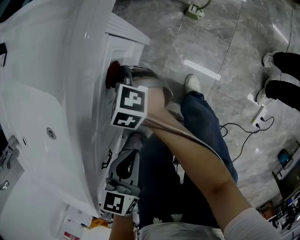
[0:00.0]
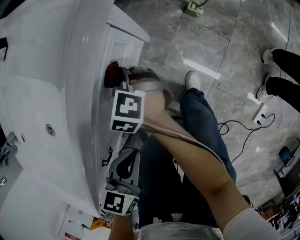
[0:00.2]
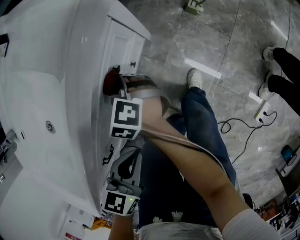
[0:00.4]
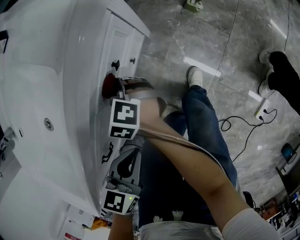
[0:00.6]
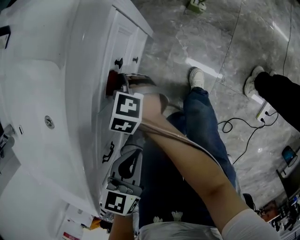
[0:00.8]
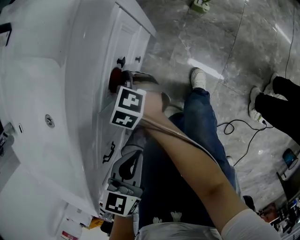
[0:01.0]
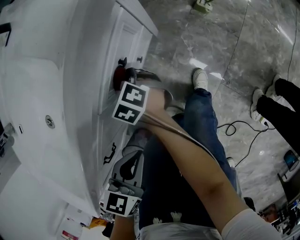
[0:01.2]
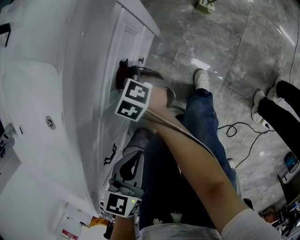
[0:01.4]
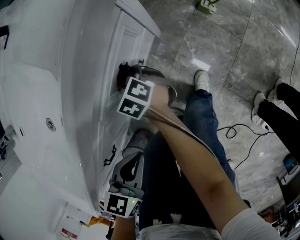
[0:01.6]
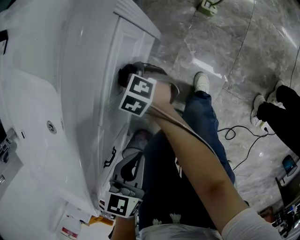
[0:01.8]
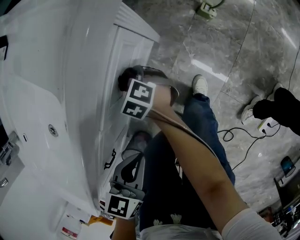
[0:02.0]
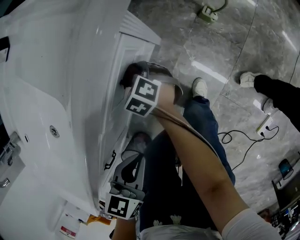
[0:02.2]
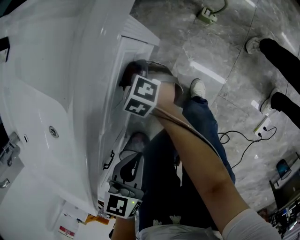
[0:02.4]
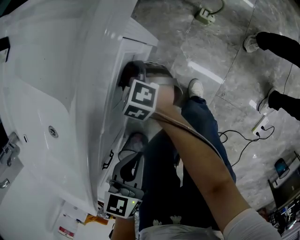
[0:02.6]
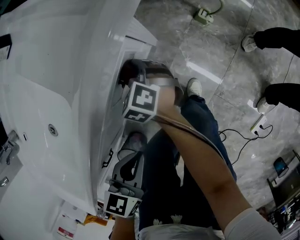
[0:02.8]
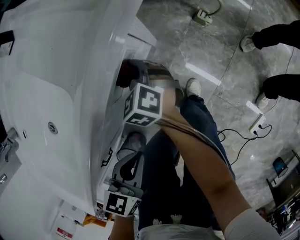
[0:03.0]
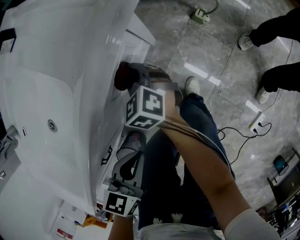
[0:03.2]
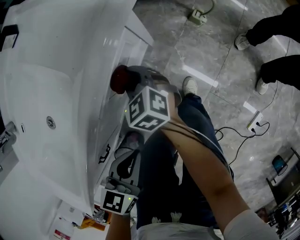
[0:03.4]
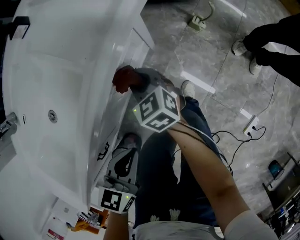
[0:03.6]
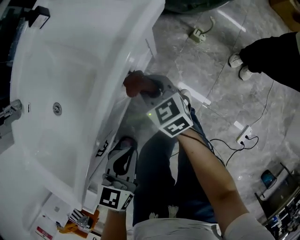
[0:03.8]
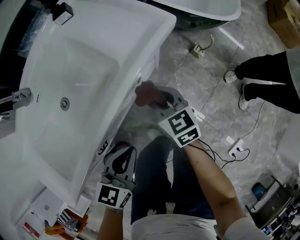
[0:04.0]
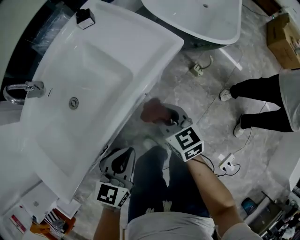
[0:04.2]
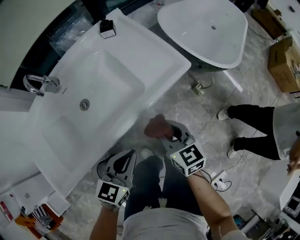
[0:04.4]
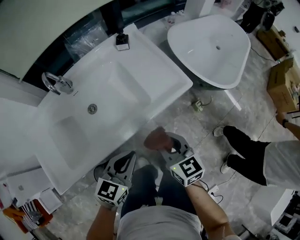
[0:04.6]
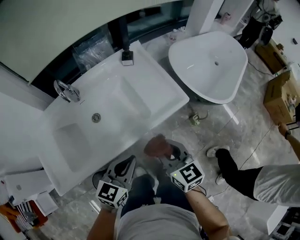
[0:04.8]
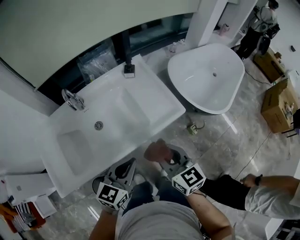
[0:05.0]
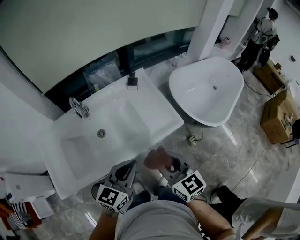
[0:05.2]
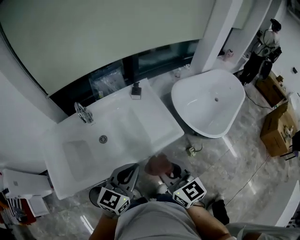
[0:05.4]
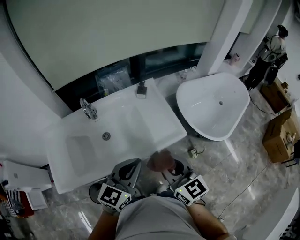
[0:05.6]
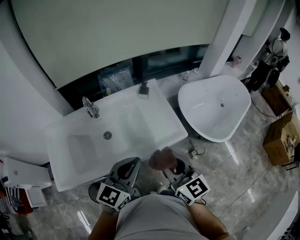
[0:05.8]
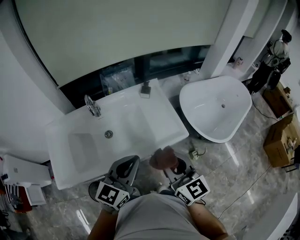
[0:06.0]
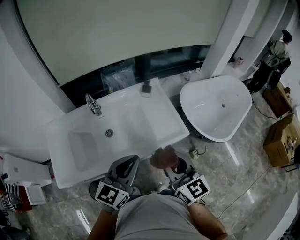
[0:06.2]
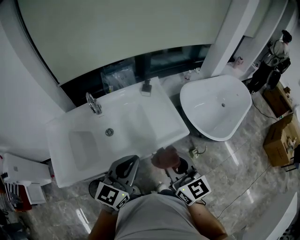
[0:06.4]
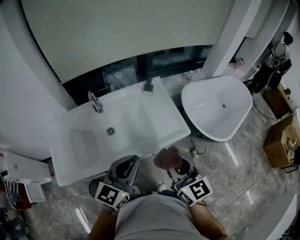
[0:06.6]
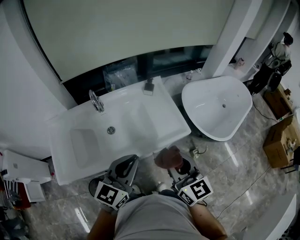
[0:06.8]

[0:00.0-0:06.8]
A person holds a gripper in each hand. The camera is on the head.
0:00.0 to 0:01.4: The left gripper shifts by some 5 cm, while the right gripper heads downward and backward, covering some 10 cm.
0:01.4 to 0:02.8: The left gripper travels forward by some 5 cm, while the right gripper is displaced forward and to the right by approximately 10 cm.
0:02.8 to 0:04.0: The right gripper shifts approximately 25 cm upward and backward, and changes its angle by roughly 30 degrees. The left gripper goes some 10 cm upward.
0:04.0 to 0:05.4: Both grippers move upward, about 35 cm. The left gripper changes its angle by roughly 30 degrees. Meanwhile the right gripper changes its angle by about 30 degrees.
0:05.4 to 0:06.8: The left gripper moves approximately 5 cm.

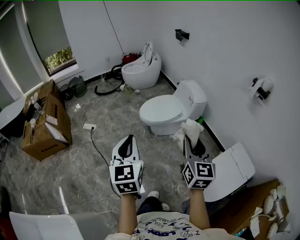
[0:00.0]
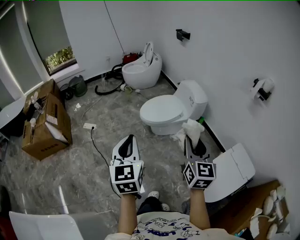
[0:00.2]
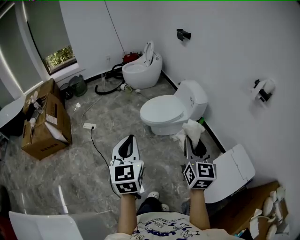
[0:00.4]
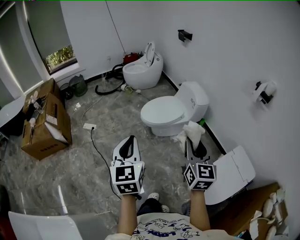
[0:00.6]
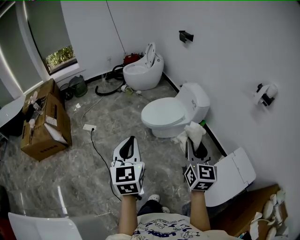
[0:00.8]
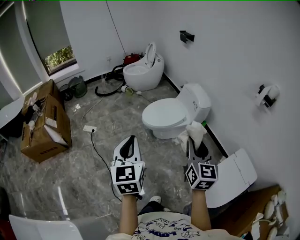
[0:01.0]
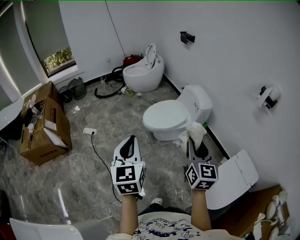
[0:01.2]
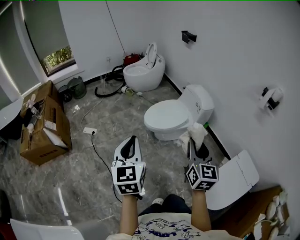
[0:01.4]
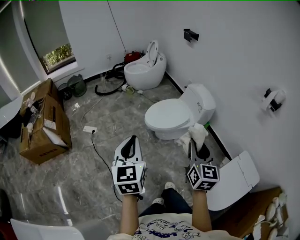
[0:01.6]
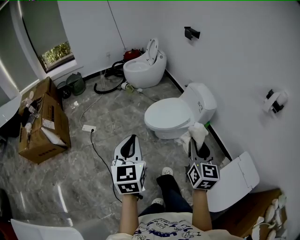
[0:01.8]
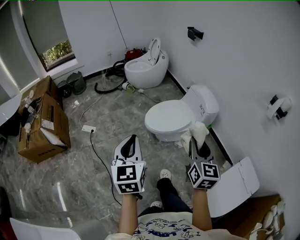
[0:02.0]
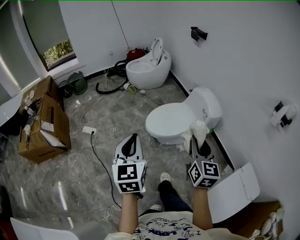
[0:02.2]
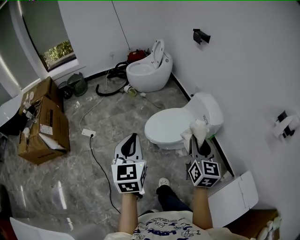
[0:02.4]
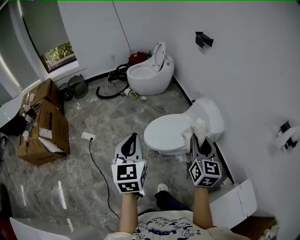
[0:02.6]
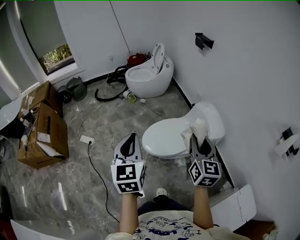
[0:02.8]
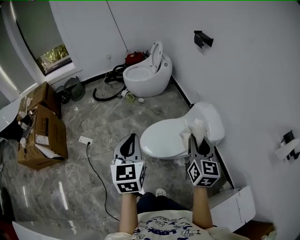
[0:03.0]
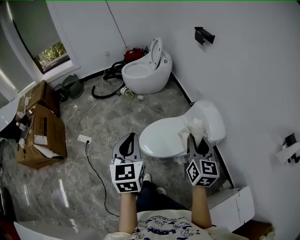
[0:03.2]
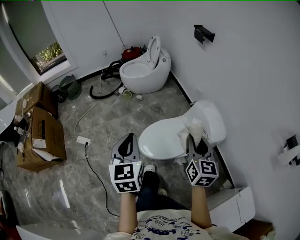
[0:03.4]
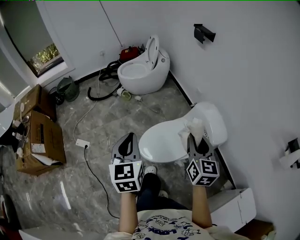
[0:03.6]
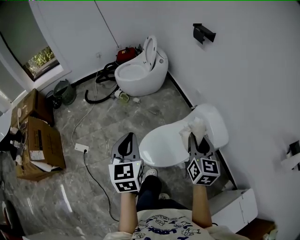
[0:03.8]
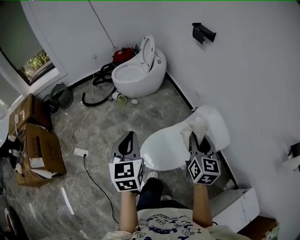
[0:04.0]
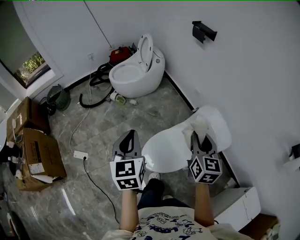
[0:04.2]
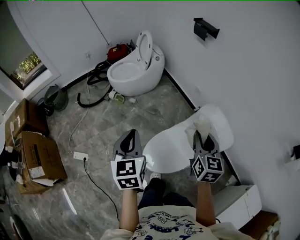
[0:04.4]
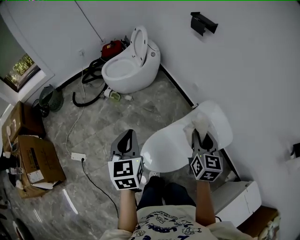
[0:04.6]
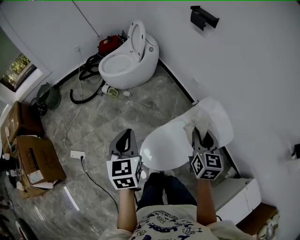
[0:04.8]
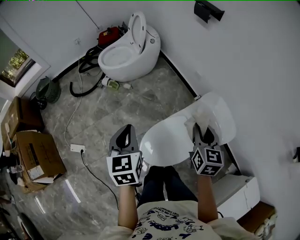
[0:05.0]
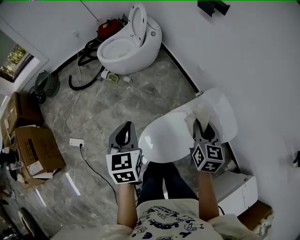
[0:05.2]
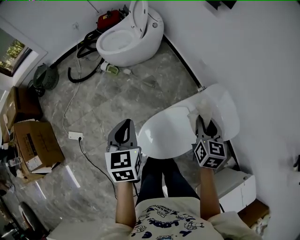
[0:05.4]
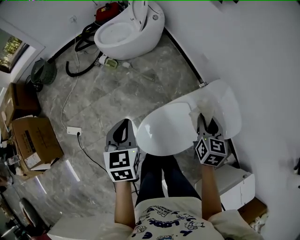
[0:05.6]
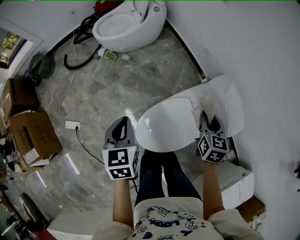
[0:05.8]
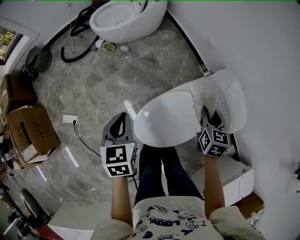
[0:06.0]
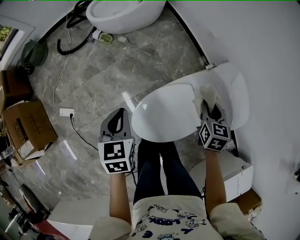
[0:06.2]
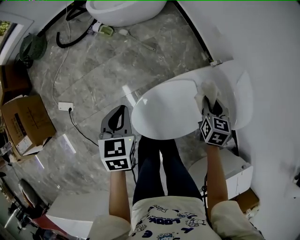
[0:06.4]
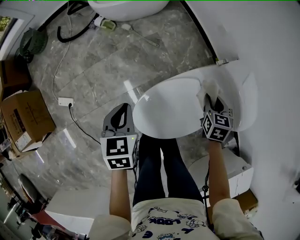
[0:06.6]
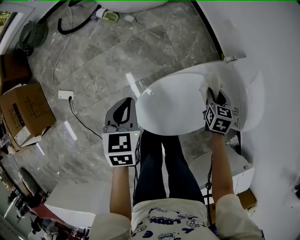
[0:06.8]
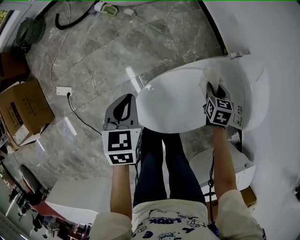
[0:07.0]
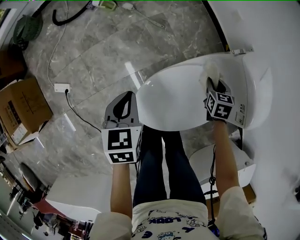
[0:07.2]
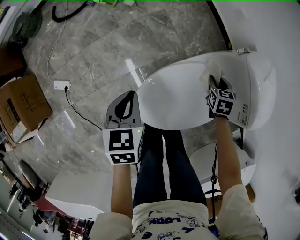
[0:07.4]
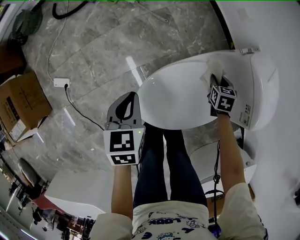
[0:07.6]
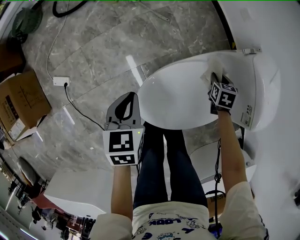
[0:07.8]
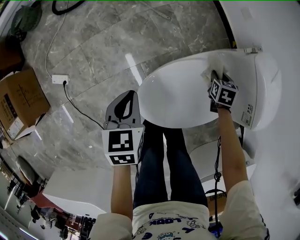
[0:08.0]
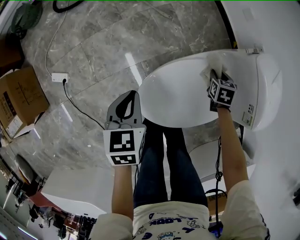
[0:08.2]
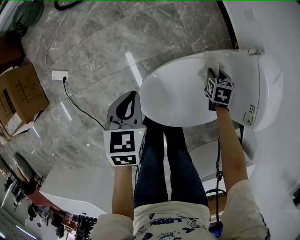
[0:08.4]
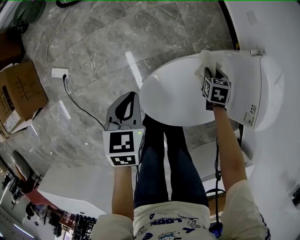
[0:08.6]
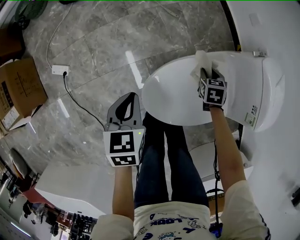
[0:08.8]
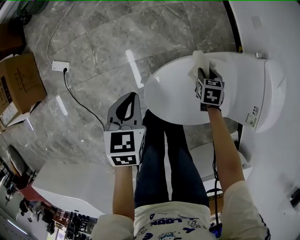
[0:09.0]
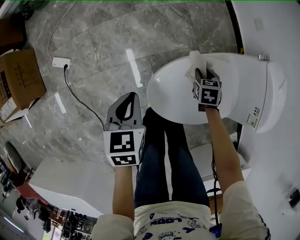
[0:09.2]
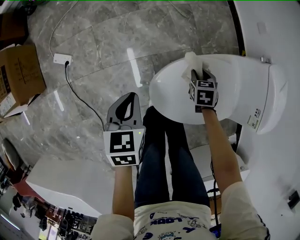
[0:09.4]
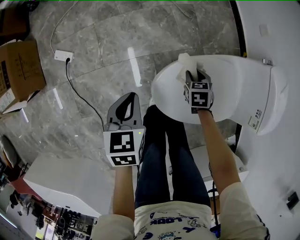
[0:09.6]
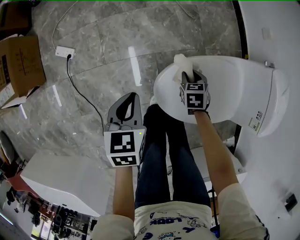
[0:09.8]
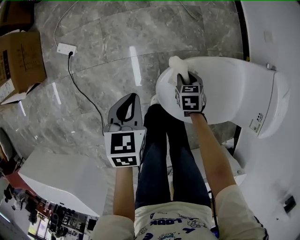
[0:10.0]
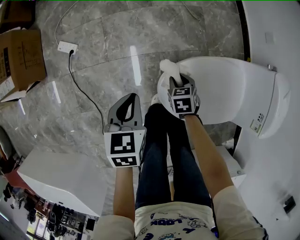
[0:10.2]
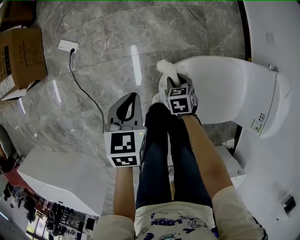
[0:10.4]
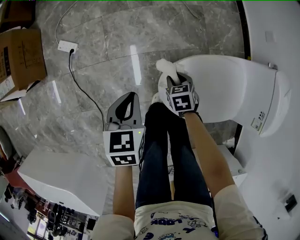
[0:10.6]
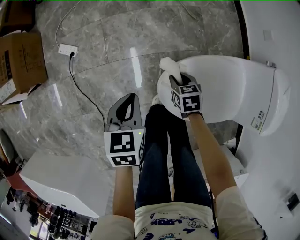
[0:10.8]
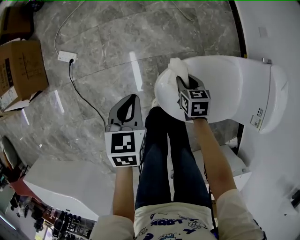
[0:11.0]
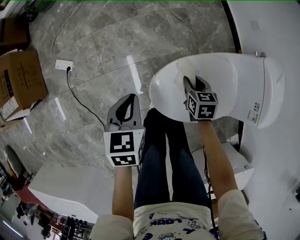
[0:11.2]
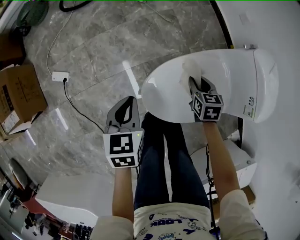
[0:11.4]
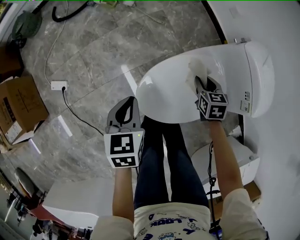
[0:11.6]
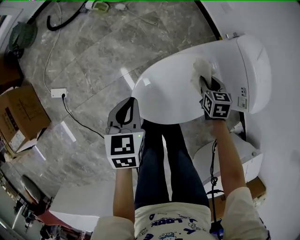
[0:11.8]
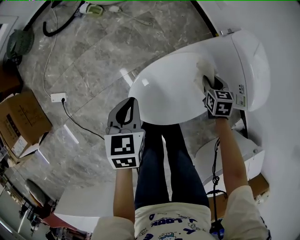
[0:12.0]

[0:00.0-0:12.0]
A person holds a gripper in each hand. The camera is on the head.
0:00.0 to 0:01.6: The two grippers go approximately 15 cm forward and to the left.
0:01.6 to 0:03.0: Both grippers move forward, approximately 40 cm.
0:03.0 to 0:04.4: Both grippers move forward, roughly 30 cm.
0:04.4 to 0:06.0: Both grippers travel together downward and forward, some 25 cm. The left gripper changes its angle by some 20 degrees. The right gripper turns by roughly 20 degrees.
0:06.0 to 0:07.6: The left gripper shifts about 20 cm downward. Meanwhile the right gripper heads downward, covering some 30 cm, and turns by approximately 30 degrees.
0:07.6 to 0:09.0: The left gripper is displaced backward and to the left by about 10 cm. Meanwhile the right gripper heads to the left, covering approximately 15 cm.
0:09.0 to 0:10.4: The right gripper is displaced to the left by about 25 cm, and swivels about 20 degrees; the left gripper travels to the left and backward by about 10 cm.
0:10.4 to 0:12.0: The right gripper moves about 40 cm, and turns by about 30 degrees. The left gripper shifts by about 20 cm, and turns by approximately 20 degrees.

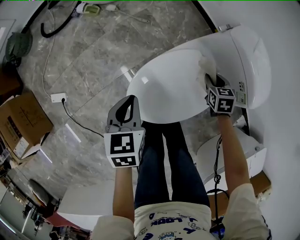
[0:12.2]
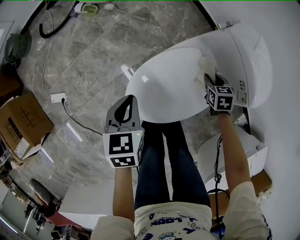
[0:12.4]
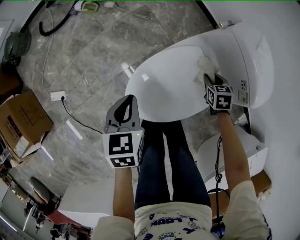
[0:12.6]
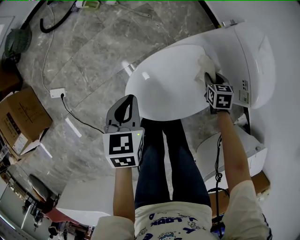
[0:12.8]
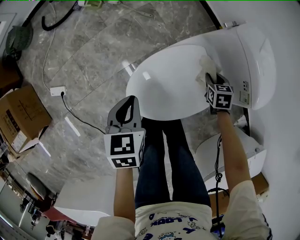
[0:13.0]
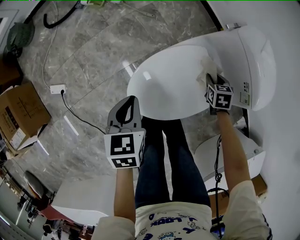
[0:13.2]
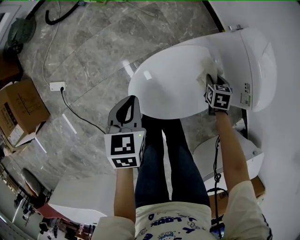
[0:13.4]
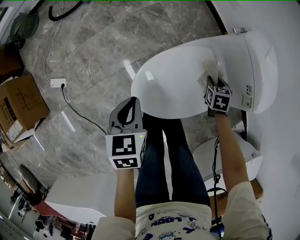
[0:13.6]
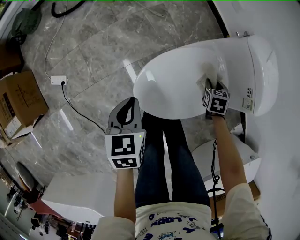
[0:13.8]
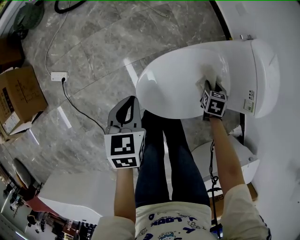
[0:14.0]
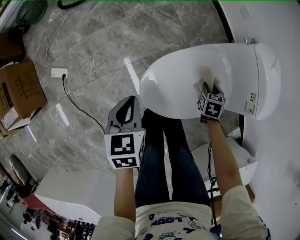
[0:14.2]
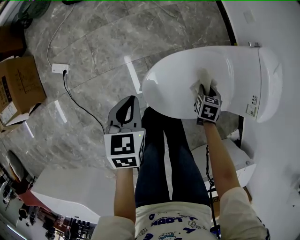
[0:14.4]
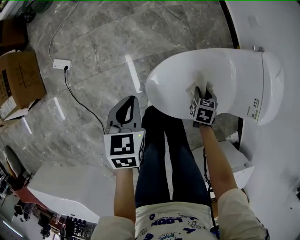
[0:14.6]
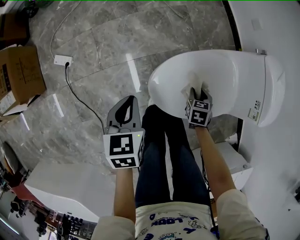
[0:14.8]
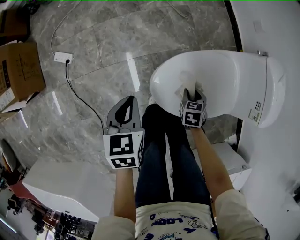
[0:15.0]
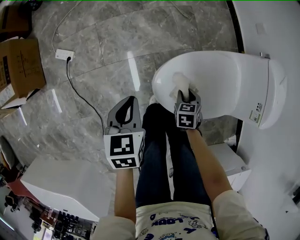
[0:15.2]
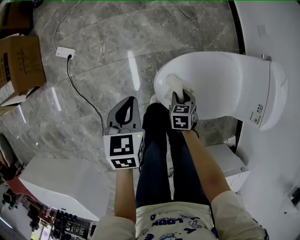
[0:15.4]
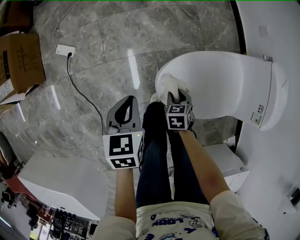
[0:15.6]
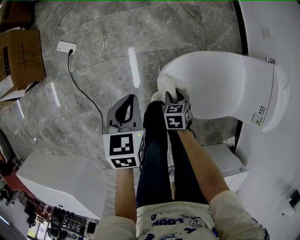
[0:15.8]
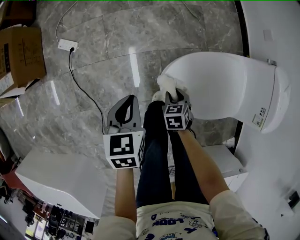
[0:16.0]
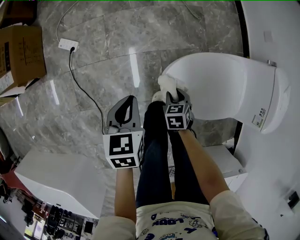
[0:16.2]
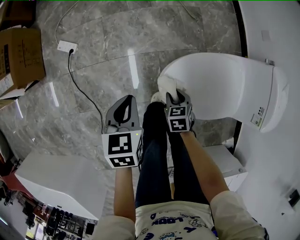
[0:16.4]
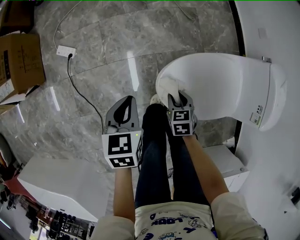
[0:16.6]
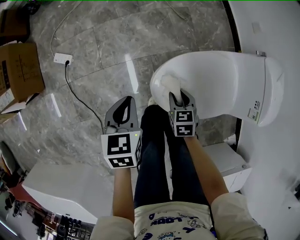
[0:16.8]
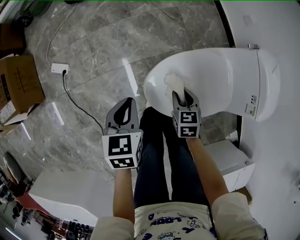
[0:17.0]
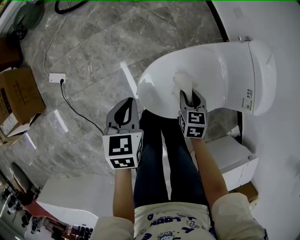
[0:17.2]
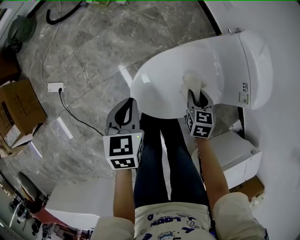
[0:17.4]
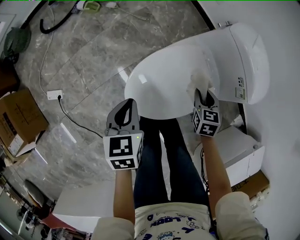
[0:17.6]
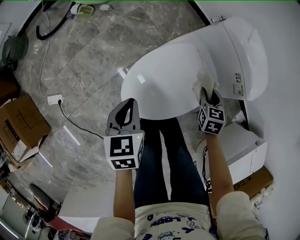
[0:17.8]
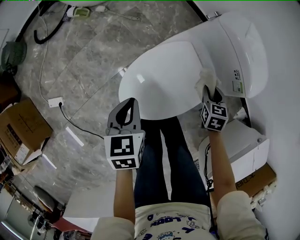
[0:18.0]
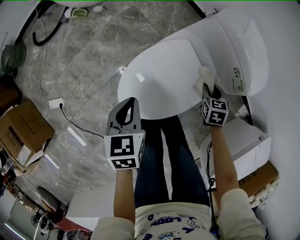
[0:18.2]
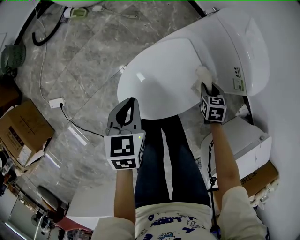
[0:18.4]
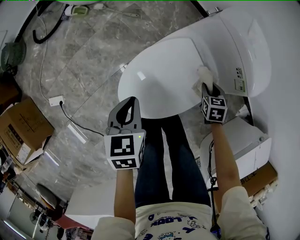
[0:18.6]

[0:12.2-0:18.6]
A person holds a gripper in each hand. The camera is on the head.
0:12.2 to 0:13.8: The left gripper is displaced backward by about 5 cm. Meanwhile the right gripper moves about 5 cm.
0:13.8 to 0:15.4: The left gripper is displaced to the left and backward by some 15 cm. Meanwhile the right gripper travels to the left and backward by approximately 30 cm, and swivels approximately 20 degrees.
0:15.4 to 0:17.0: The right gripper goes approximately 5 cm upward, while the left gripper changes place by about 5 cm.
0:17.0 to 0:18.6: The right gripper ends up some 35 cm from where it was, and swivels approximately 30 degrees; the left gripper moves some 20 cm, and turns by roughly 20 degrees.
